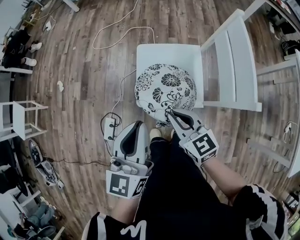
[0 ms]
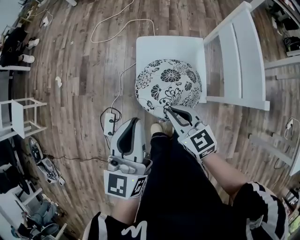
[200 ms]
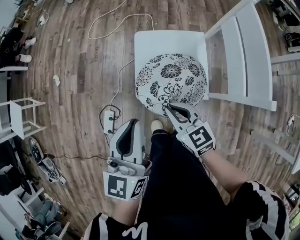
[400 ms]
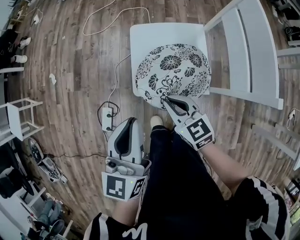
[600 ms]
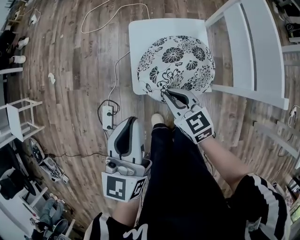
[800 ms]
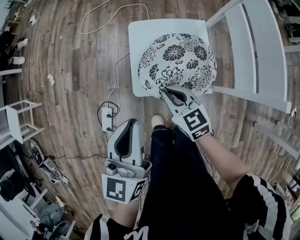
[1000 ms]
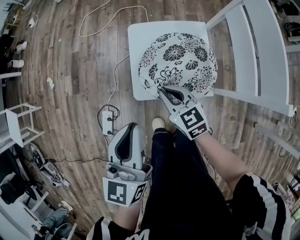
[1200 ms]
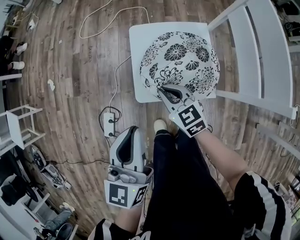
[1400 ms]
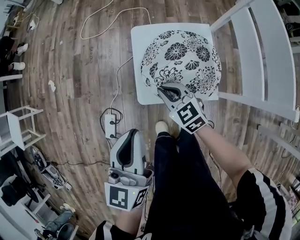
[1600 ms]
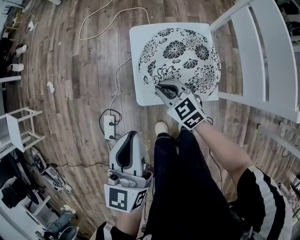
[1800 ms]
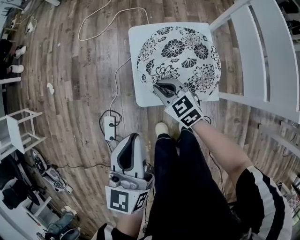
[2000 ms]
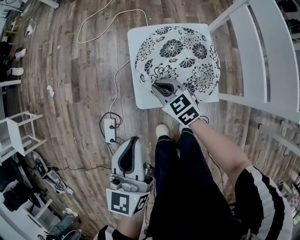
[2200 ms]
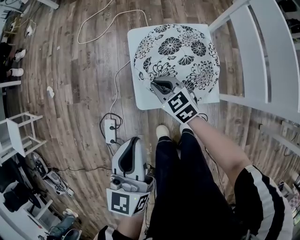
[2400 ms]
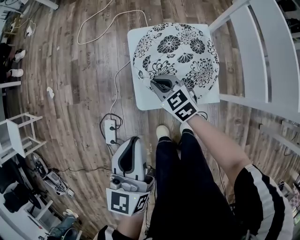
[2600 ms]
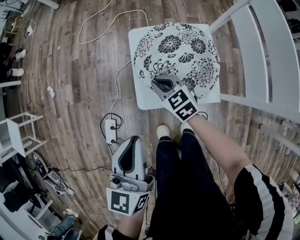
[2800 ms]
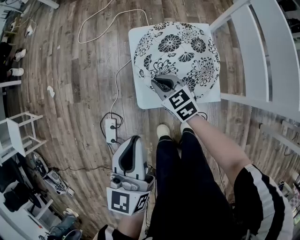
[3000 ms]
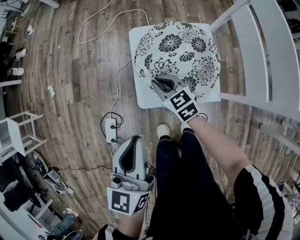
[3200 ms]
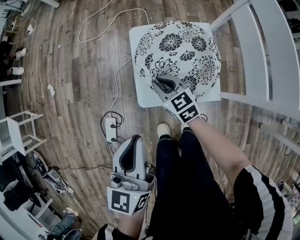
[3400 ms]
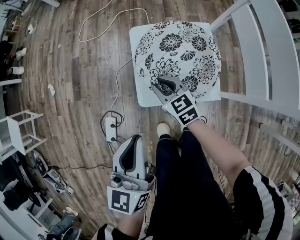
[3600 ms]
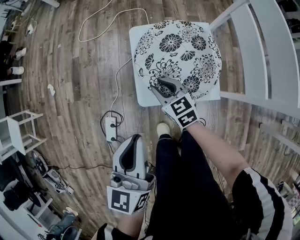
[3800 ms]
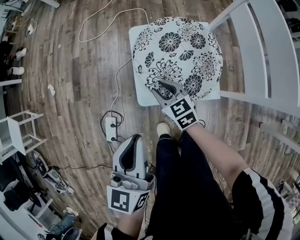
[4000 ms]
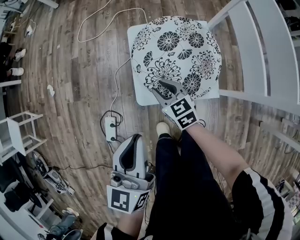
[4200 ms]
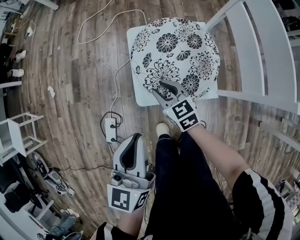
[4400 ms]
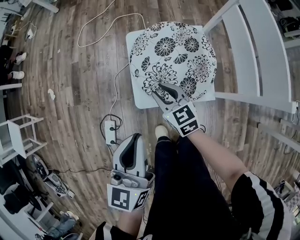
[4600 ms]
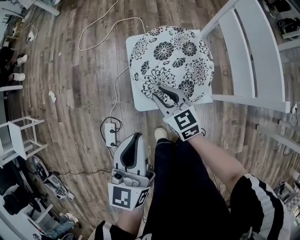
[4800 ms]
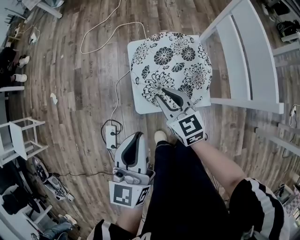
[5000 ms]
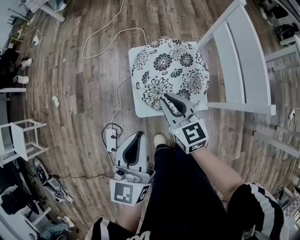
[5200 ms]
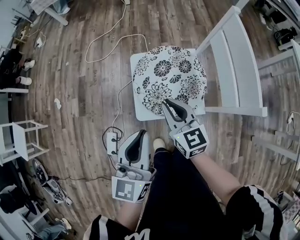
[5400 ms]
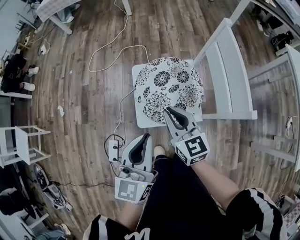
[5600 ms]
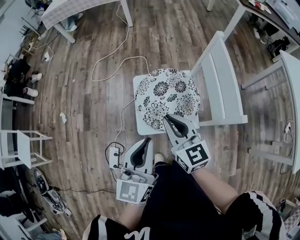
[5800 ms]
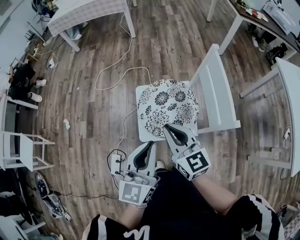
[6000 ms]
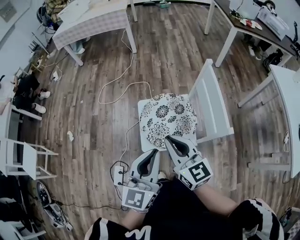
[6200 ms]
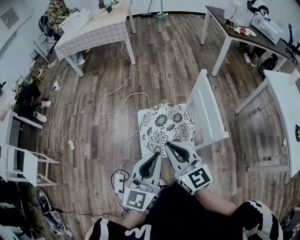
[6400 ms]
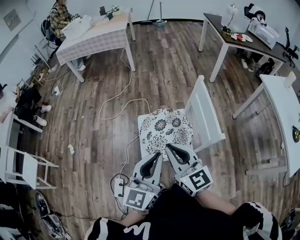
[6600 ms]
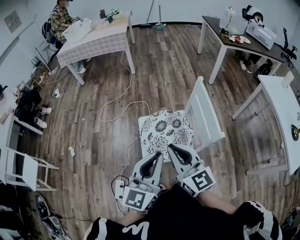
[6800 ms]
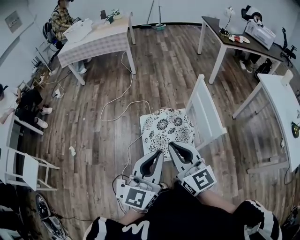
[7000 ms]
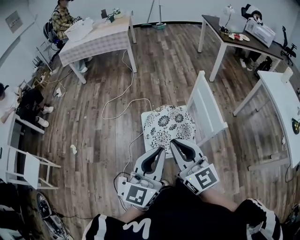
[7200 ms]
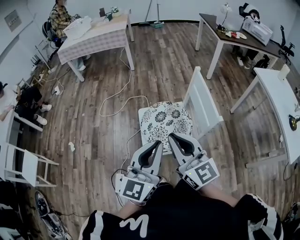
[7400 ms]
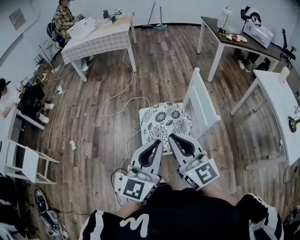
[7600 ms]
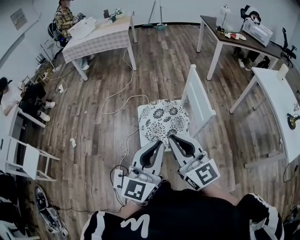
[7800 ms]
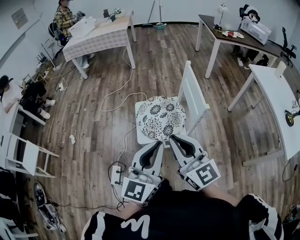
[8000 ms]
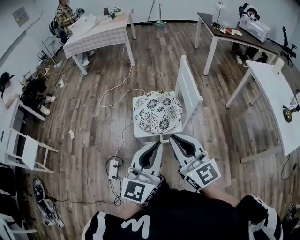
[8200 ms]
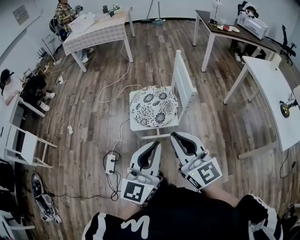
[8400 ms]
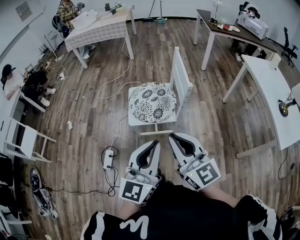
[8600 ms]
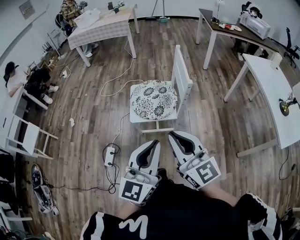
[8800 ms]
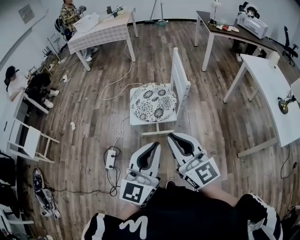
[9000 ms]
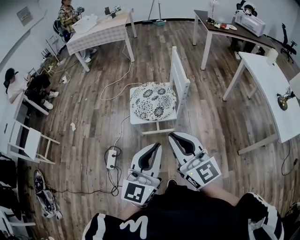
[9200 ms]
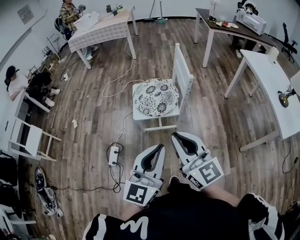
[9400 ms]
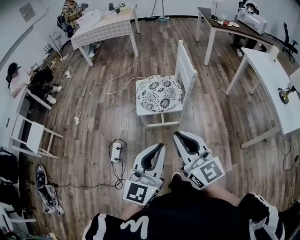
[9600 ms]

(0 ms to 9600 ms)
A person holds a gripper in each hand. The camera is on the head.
0 ms - 1600 ms: The left gripper shifts about 10 cm downward. The right gripper heads downward and forward, covering some 20 cm.
1600 ms - 3200 ms: The right gripper moves about 5 cm.
3200 ms - 4800 ms: The right gripper goes about 5 cm upward, and opens.
4800 ms - 6400 ms: The left gripper goes some 20 cm upward and to the right. The right gripper shifts approximately 30 cm upward, changes its angle by roughly 20 degrees, and closes up.
6400 ms - 8000 ms: The two grippers go roughly 15 cm backward and upward.
8000 ms - 9600 ms: The two grippers go roughly 20 cm backward.

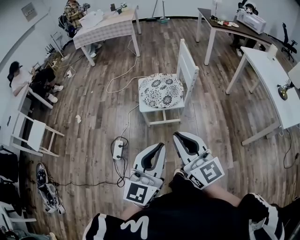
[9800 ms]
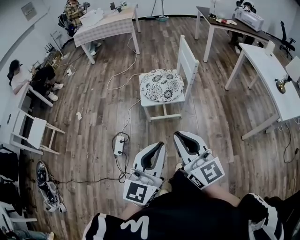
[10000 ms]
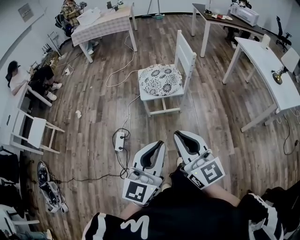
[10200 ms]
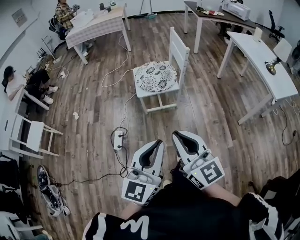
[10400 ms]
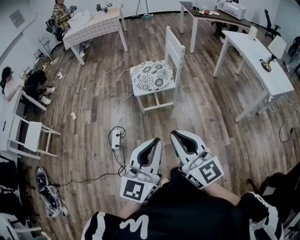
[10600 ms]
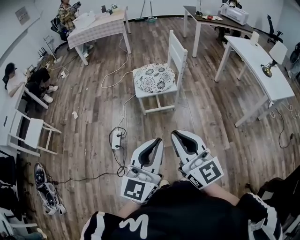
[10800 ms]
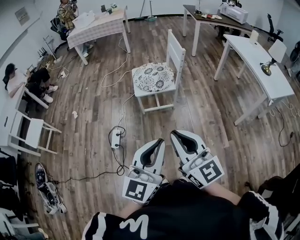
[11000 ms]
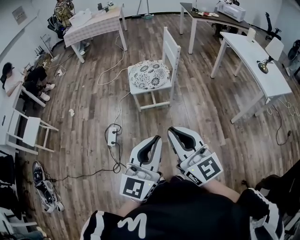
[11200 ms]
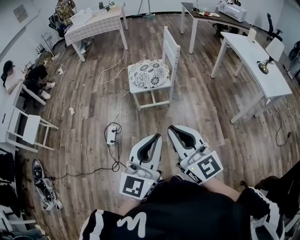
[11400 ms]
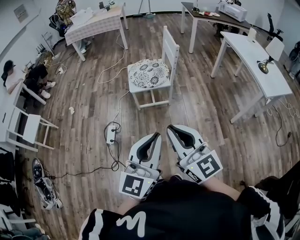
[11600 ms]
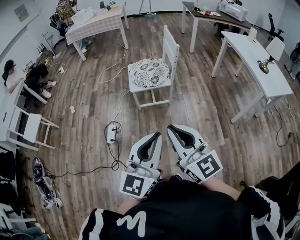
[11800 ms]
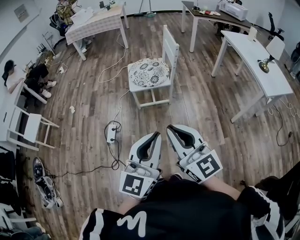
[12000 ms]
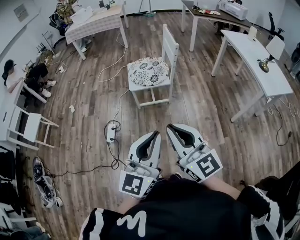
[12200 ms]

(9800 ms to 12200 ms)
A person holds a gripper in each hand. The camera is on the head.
9800 ms - 11000 ms: The two grippers go approximately 15 cm backward.
11000 ms - 12200 ms: There are only small adjustments of the grippers.

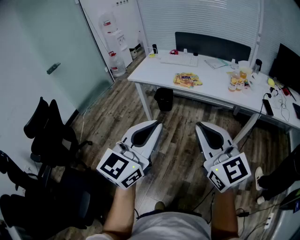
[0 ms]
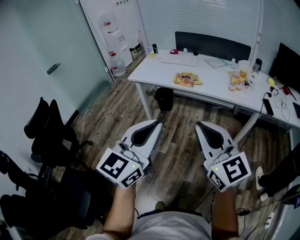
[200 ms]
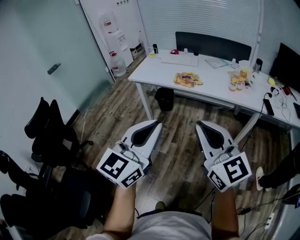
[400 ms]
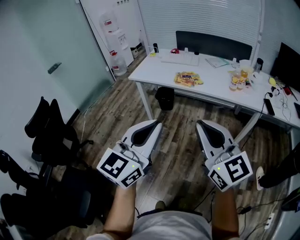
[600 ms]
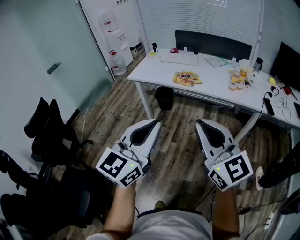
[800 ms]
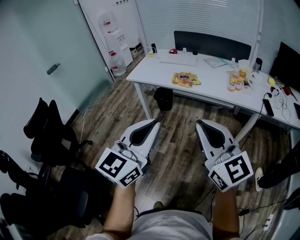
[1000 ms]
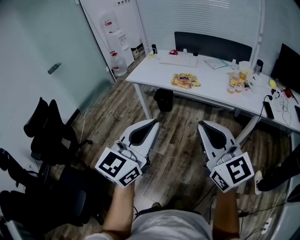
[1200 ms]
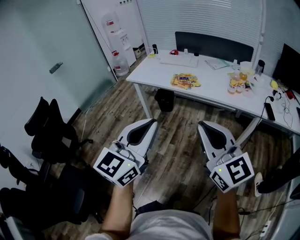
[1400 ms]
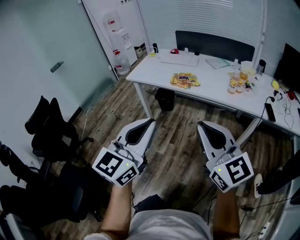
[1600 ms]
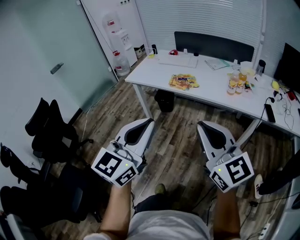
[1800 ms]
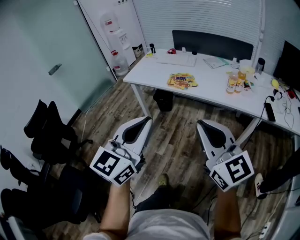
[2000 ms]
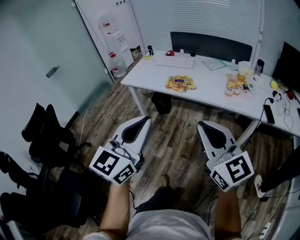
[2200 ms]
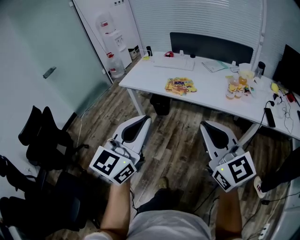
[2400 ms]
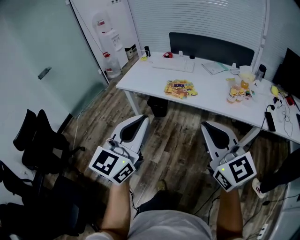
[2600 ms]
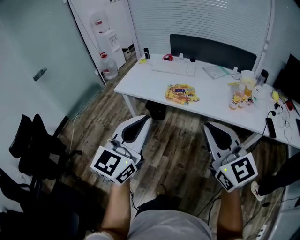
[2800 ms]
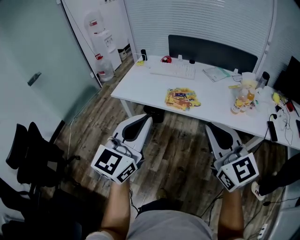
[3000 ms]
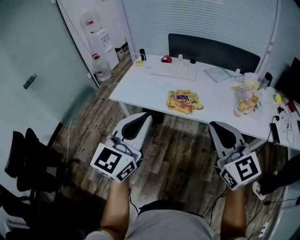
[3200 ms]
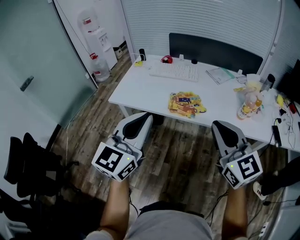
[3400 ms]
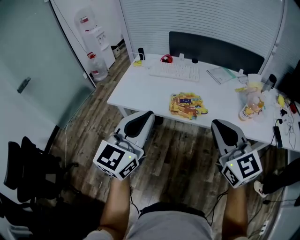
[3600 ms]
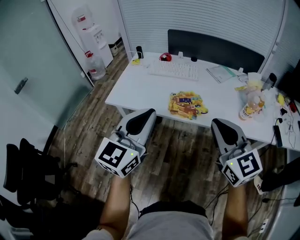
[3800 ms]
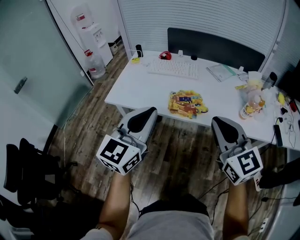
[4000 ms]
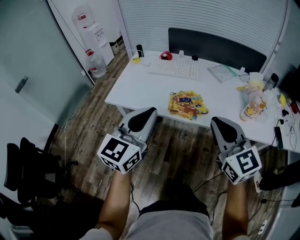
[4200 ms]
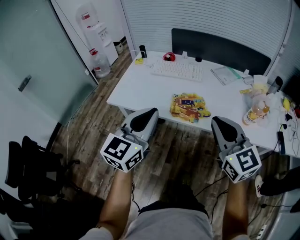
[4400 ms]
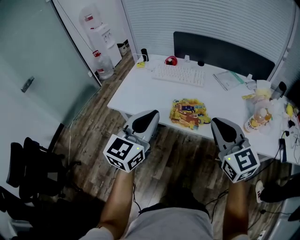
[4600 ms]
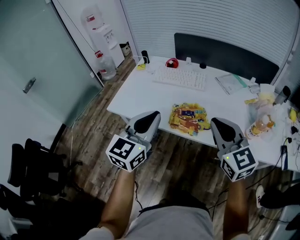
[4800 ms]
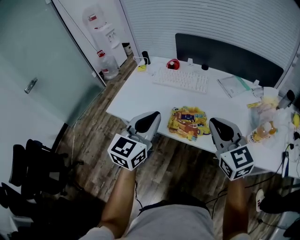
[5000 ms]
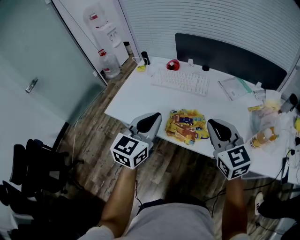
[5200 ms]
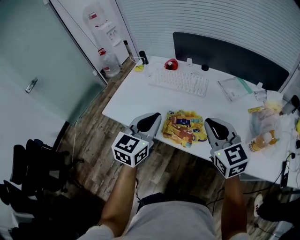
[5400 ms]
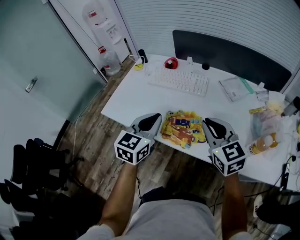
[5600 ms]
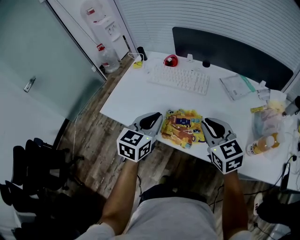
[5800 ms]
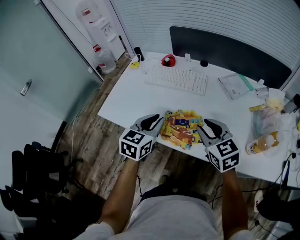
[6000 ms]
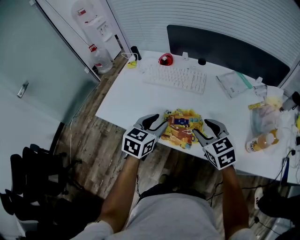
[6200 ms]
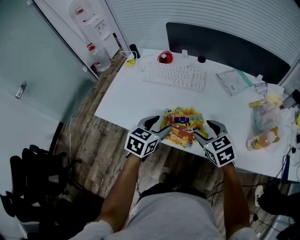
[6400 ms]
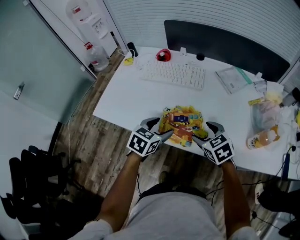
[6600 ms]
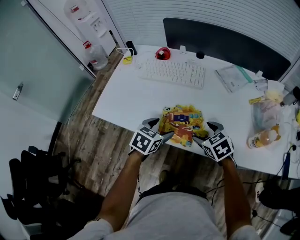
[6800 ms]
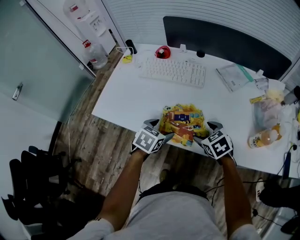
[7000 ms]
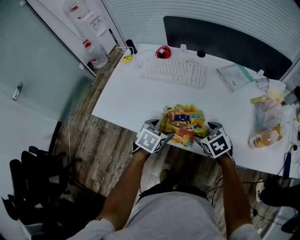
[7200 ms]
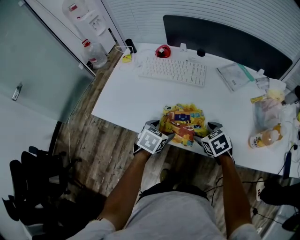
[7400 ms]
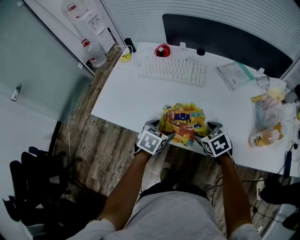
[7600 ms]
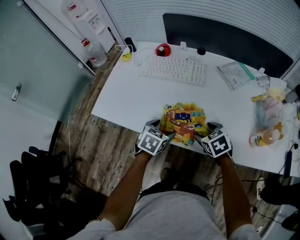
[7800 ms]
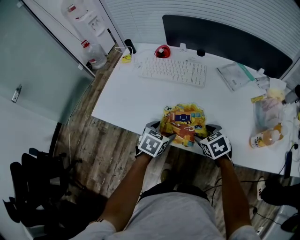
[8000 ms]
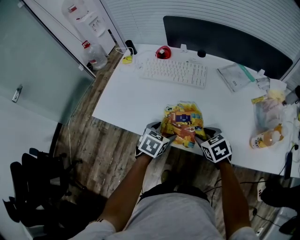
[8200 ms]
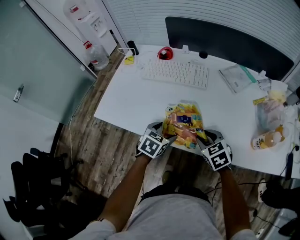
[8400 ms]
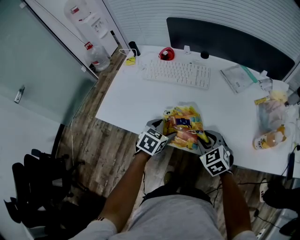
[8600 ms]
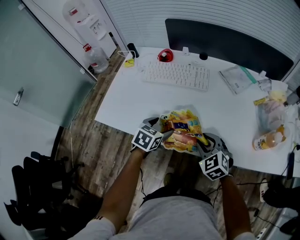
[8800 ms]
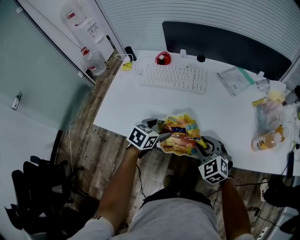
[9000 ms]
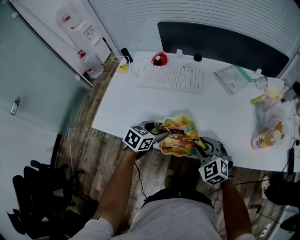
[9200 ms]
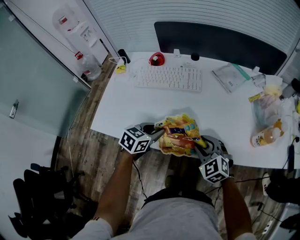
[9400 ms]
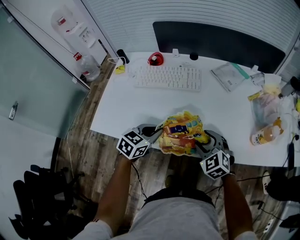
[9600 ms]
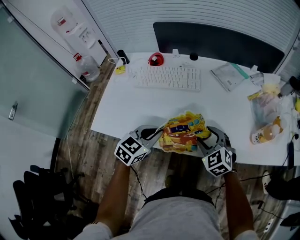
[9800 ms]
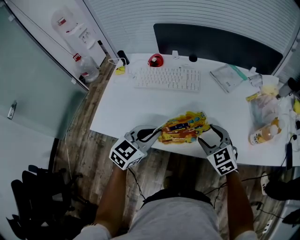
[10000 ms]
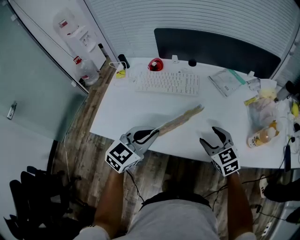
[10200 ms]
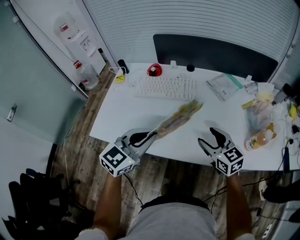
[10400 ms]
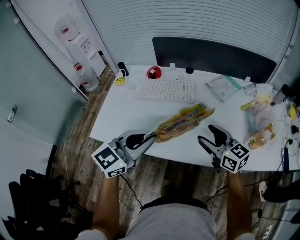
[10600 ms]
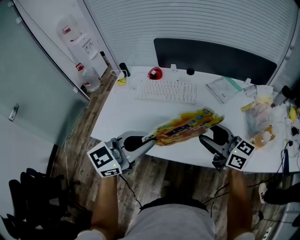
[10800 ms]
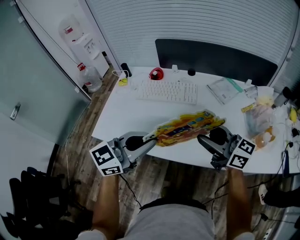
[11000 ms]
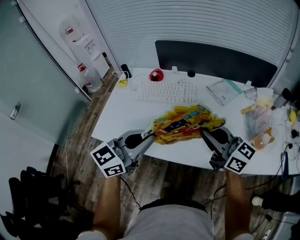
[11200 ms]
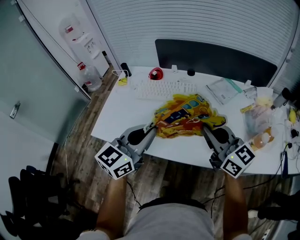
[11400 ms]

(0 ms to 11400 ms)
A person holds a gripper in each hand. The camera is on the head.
0 ms - 1400 ms: The left gripper shifts by approximately 5 cm. Meanwhile the right gripper travels to the right by about 5 cm.
1400 ms - 2800 ms: Both grippers move forward, some 20 cm.
2800 ms - 4200 ms: The two grippers go about 20 cm forward.
4200 ms - 5600 ms: The left gripper is displaced forward, downward and to the right by about 25 cm, while the right gripper travels forward and downward by roughly 25 cm.
5600 ms - 7200 ms: The two grippers go about 20 cm downward. The left gripper angles its fingers downward, by about 40 degrees, and opens up. Meanwhile the right gripper angles its fingers downward, by about 40 degrees, and opens its fingers.
7200 ms - 8600 ms: The right gripper closes its fingers.
8600 ms - 10000 ms: The left gripper shifts about 10 cm upward, swivels roughly 30 degrees, and closes up.
10000 ms - 11400 ms: Both grippers travel together upward, about 15 cm. The left gripper changes its angle by about 20 degrees, while the right gripper angles its fingers upward, by about 40 degrees, and closes.
